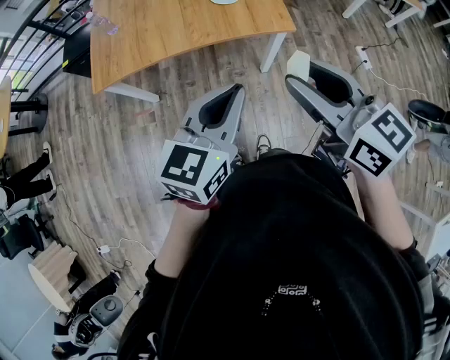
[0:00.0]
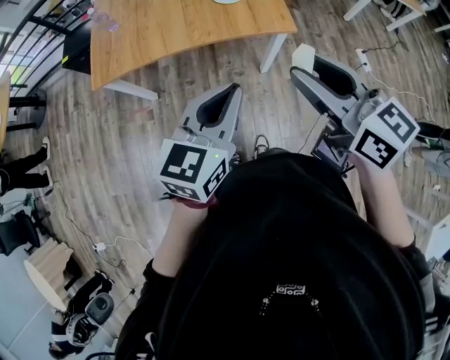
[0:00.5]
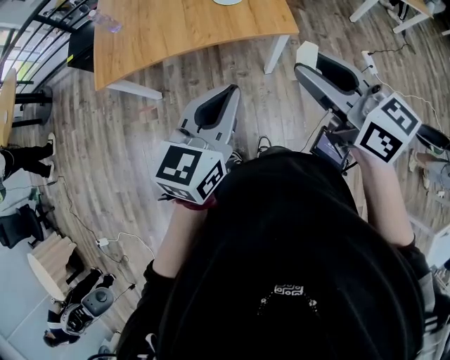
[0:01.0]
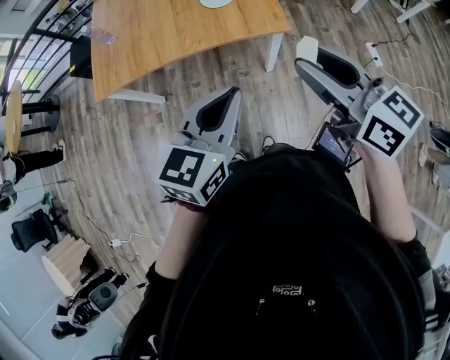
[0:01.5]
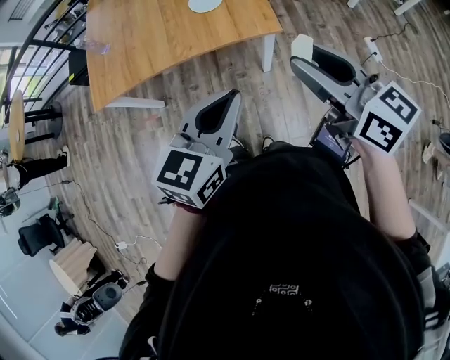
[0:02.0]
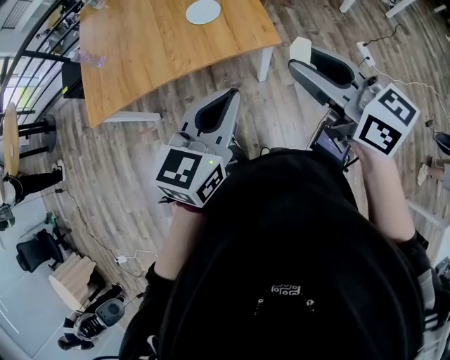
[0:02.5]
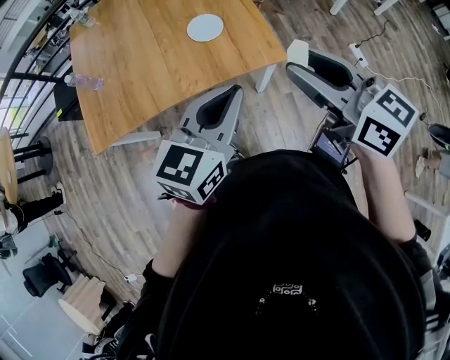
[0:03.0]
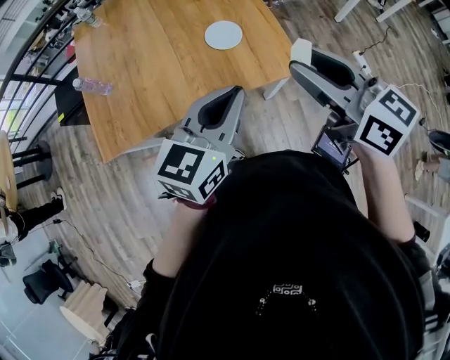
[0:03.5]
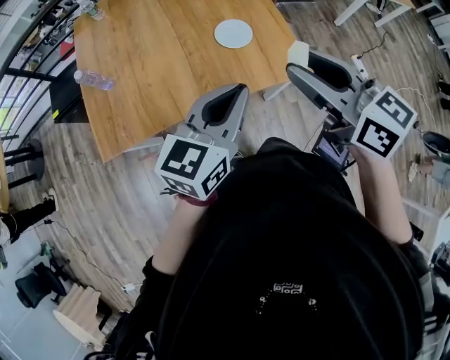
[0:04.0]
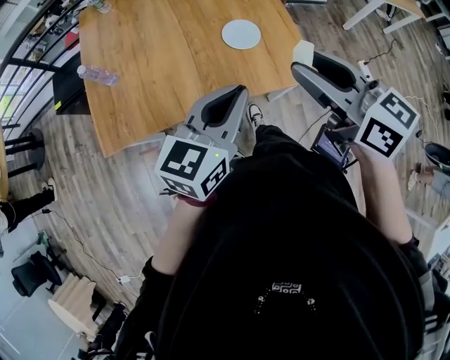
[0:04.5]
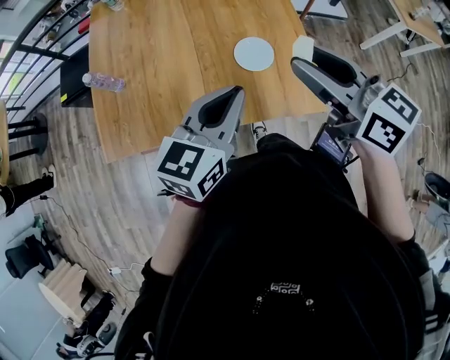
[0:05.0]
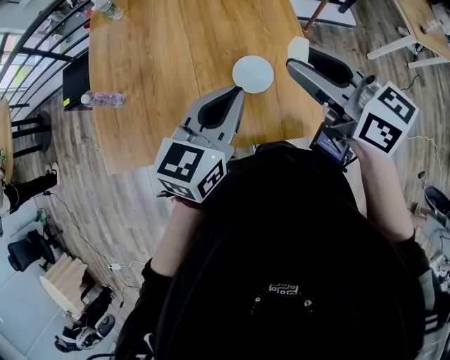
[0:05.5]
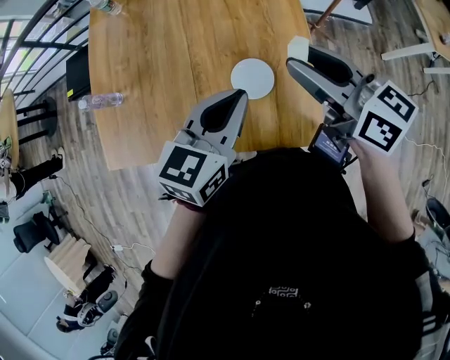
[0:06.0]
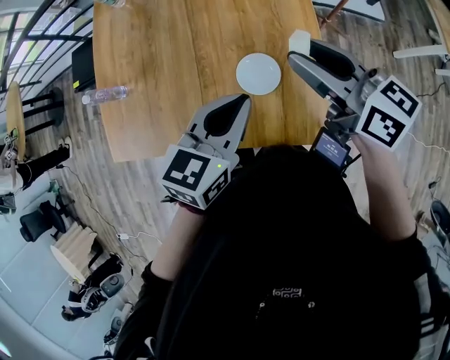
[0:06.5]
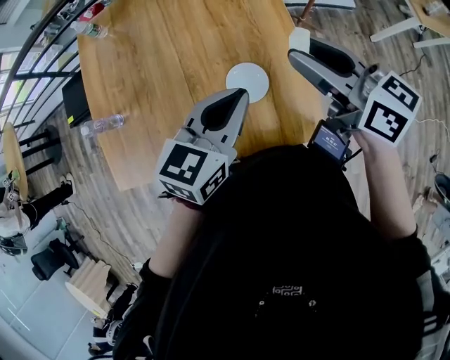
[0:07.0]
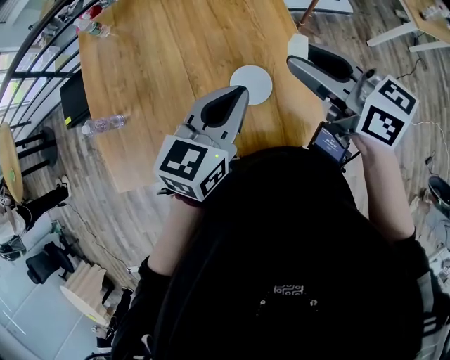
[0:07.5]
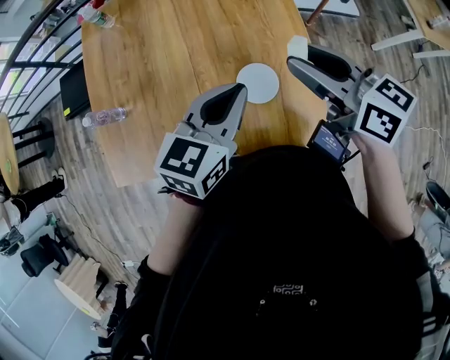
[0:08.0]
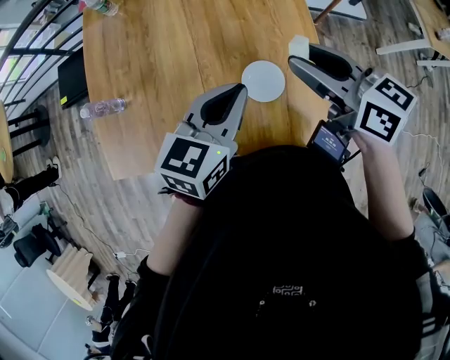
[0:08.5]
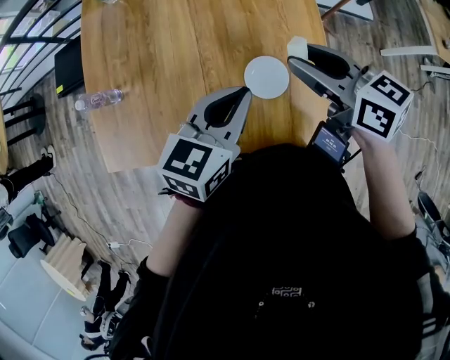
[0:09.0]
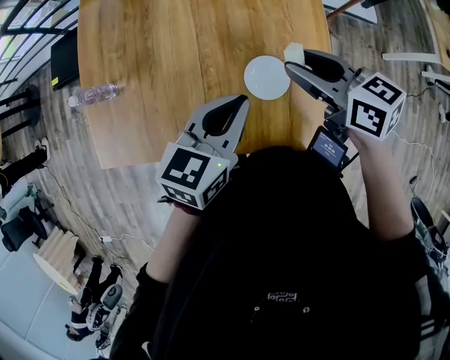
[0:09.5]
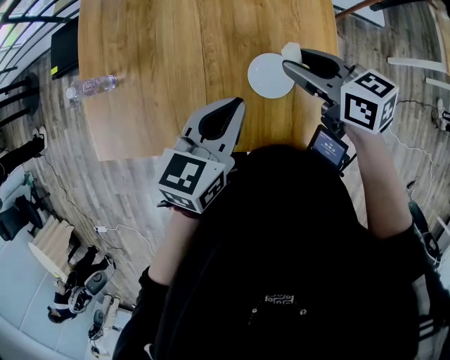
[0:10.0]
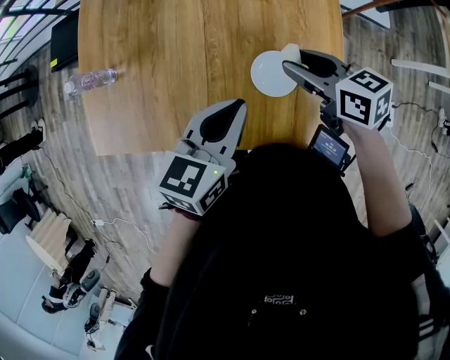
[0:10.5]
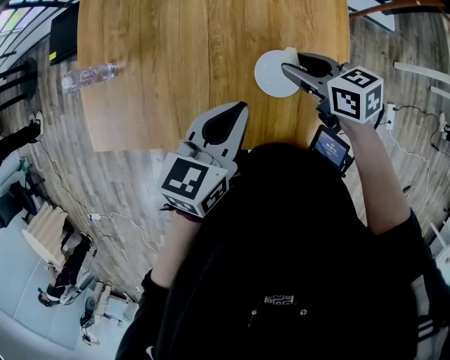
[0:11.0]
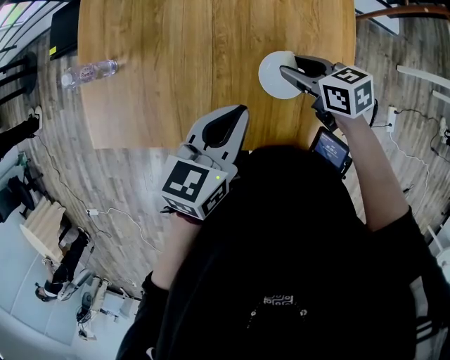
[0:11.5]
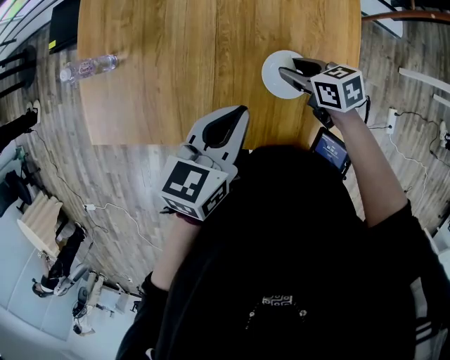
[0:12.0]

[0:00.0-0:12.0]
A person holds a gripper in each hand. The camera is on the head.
0:00.0 to 0:02.0: The left gripper is displaced to the right by some 10 cm; the right gripper travels to the right and forward by about 15 cm.
0:02.0 to 0:04.0: The left gripper travels forward and to the left by some 25 cm. Meanwhile the right gripper goes about 25 cm to the left and forward.
0:04.0 to 0:06.0: The two grippers go about 25 cm forward.
0:06.0 to 0:08.0: The grippers make only small movements.
0:08.0 to 0:10.0: The left gripper travels downward by roughly 5 cm. The right gripper shifts approximately 10 cm downward.
0:10.0 to 0:12.0: The right gripper goes about 15 cm downward.

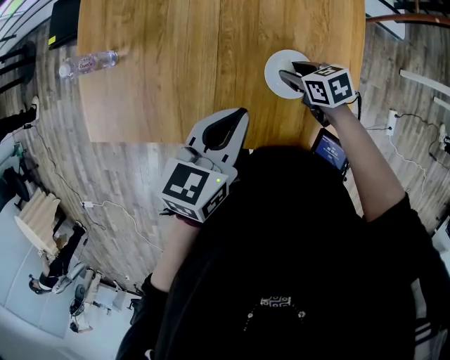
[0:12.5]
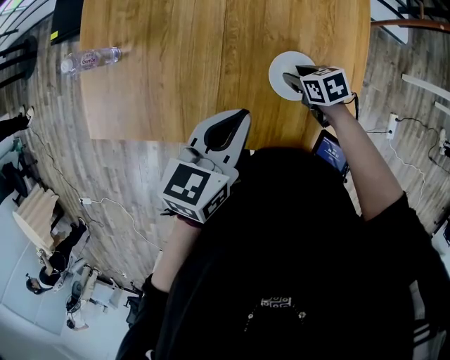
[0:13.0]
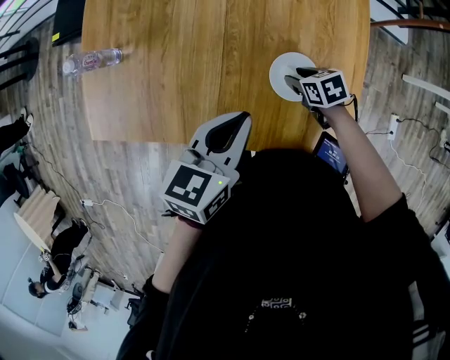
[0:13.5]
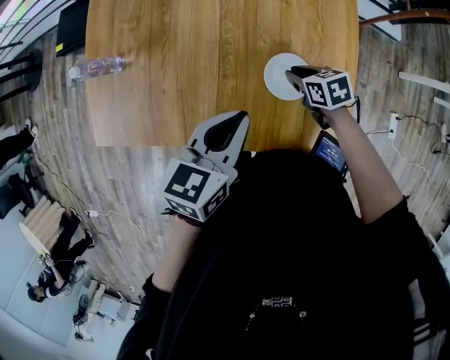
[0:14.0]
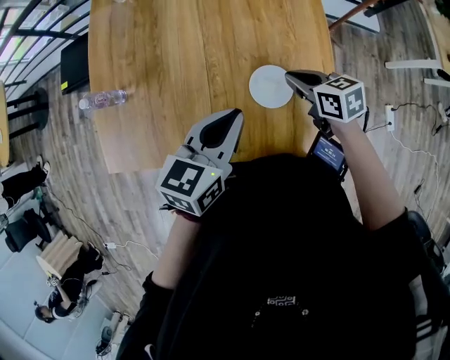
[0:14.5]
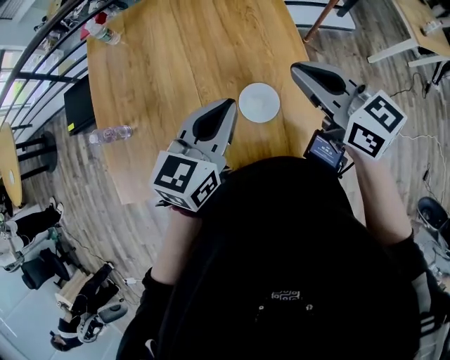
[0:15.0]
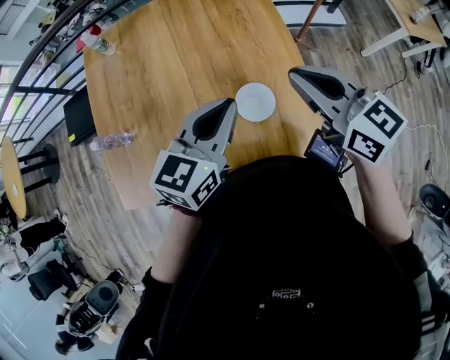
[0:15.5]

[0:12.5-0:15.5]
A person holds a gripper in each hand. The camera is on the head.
0:12.5 to 0:14.0: The grippers make only small movements.
0:14.0 to 0:15.5: The left gripper heads upward and forward, covering approximately 10 cm, and changes its angle by roughly 30 degrees, while the right gripper moves upward, roughly 35 cm, and points its fingers about 40 degrees further upward.

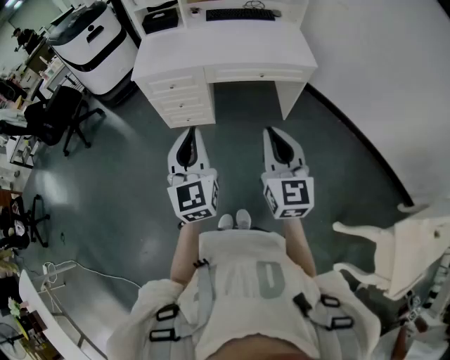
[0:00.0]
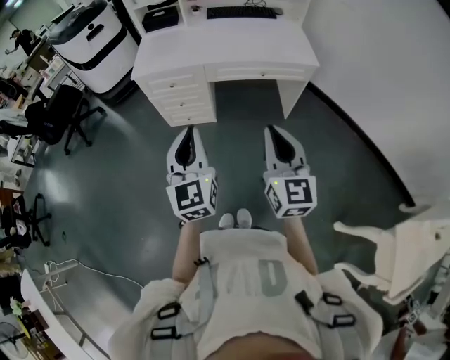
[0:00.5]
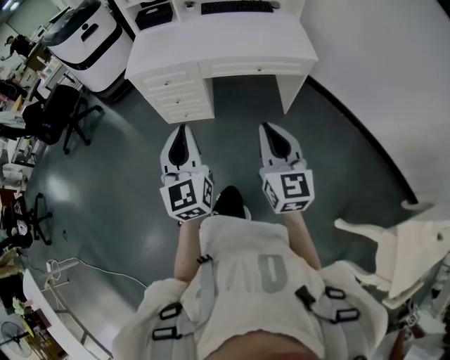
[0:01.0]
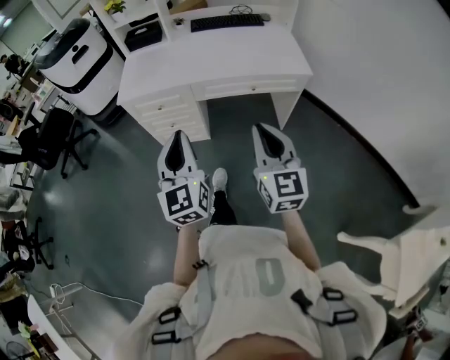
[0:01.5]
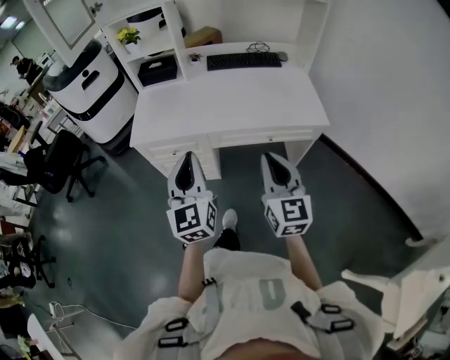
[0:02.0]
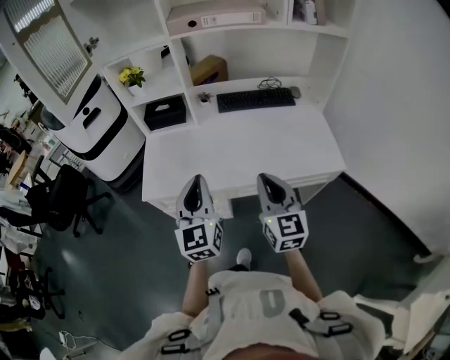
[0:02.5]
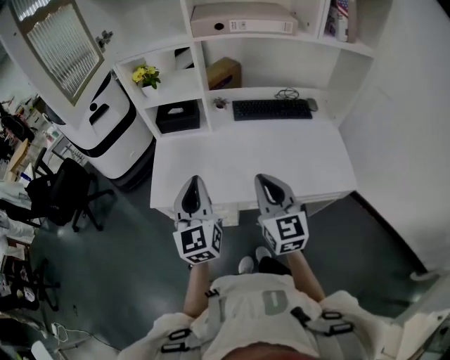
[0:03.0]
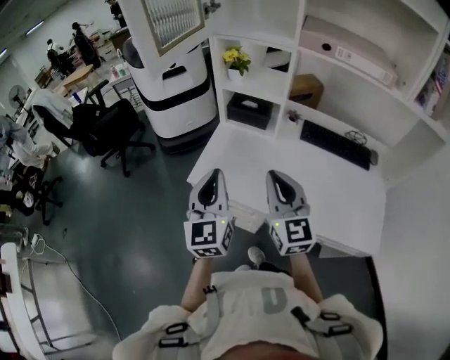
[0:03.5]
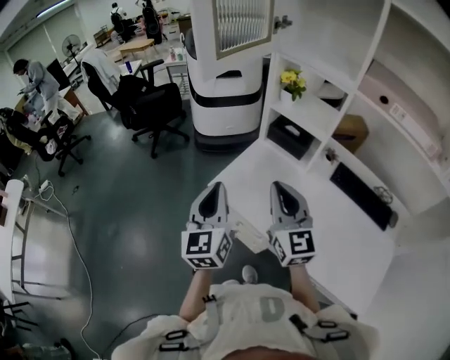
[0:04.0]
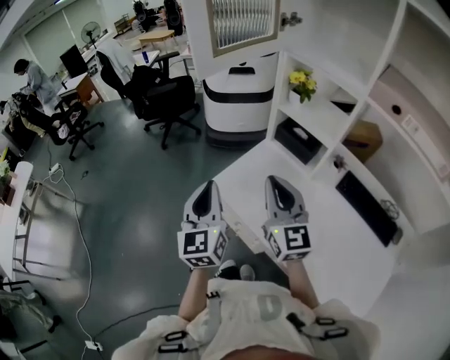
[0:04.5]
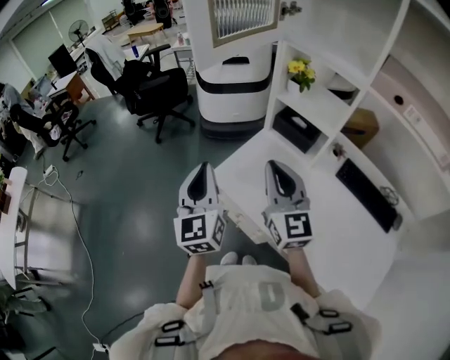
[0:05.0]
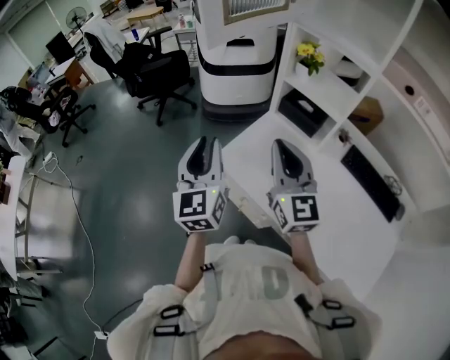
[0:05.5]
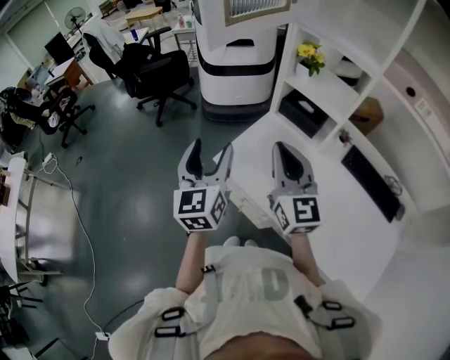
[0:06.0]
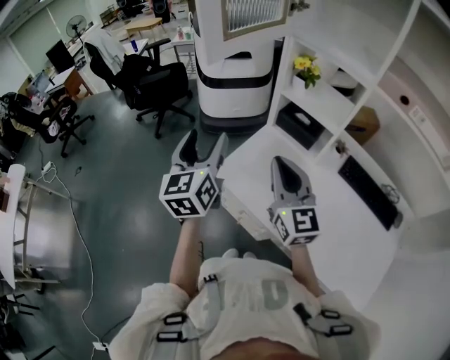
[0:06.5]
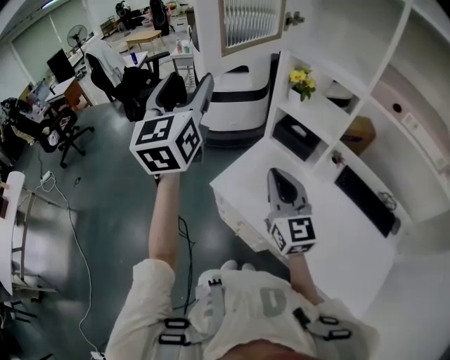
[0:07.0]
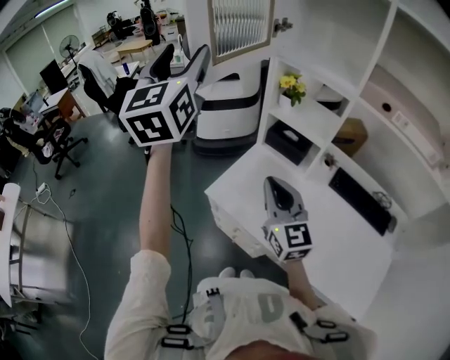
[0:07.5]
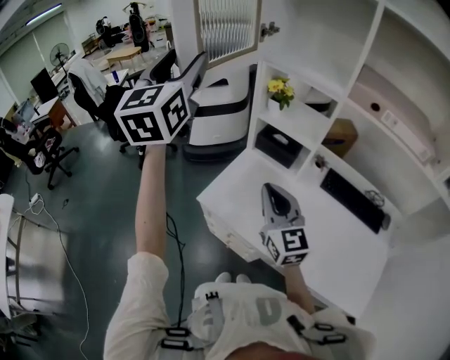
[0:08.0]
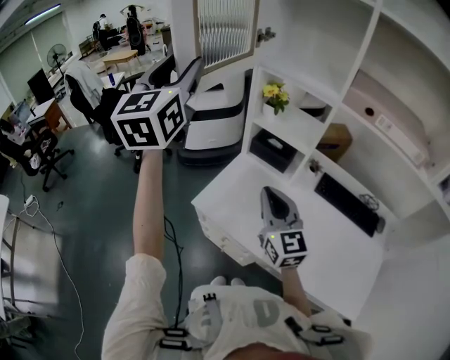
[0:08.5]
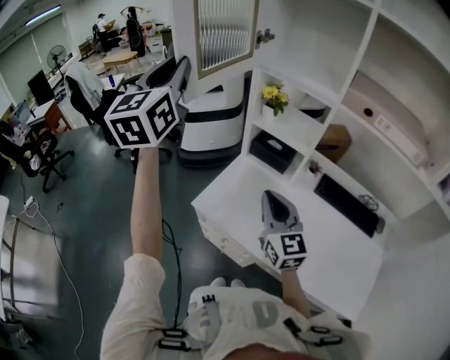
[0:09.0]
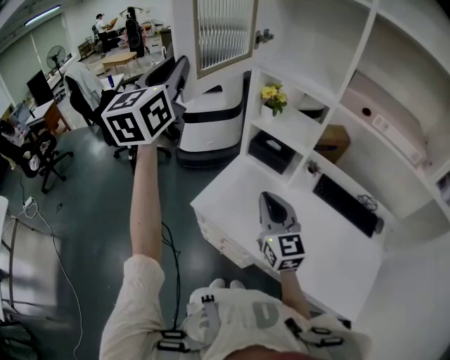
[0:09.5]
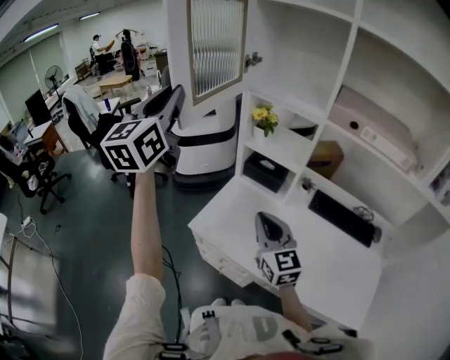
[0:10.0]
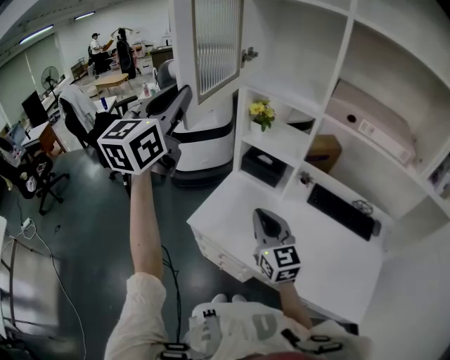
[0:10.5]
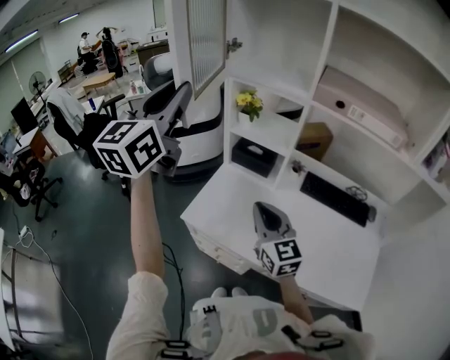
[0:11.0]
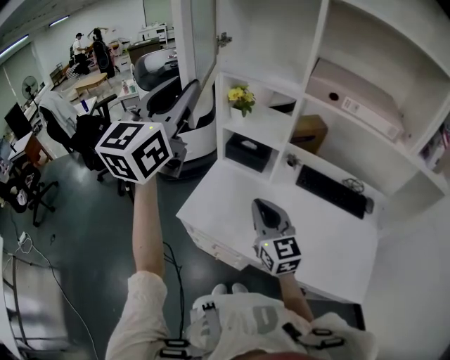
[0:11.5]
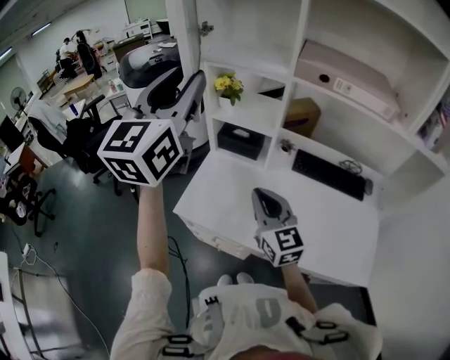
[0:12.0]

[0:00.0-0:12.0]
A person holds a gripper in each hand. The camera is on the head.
0:00.0 to 0:02.0: The grippers both shift forward by approximately 25 cm.
0:02.0 to 0:04.0: The left gripper moves about 30 cm, and turns by approximately 40 degrees, while the right gripper shifts by about 40 cm, and turns by some 50 degrees.
0:04.0 to 0:06.0: Both grippers move forward, some 5 cm. The left gripper opens.
0:06.0 to 0:08.0: The left gripper moves upward and forward, about 30 cm, and rotates roughly 20 degrees.
0:08.0 to 0:10.0: The left gripper closes up.
0:10.0 to 0:12.0: The left gripper moves to the right, about 15 cm.
